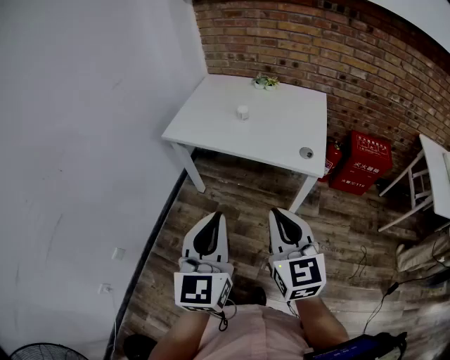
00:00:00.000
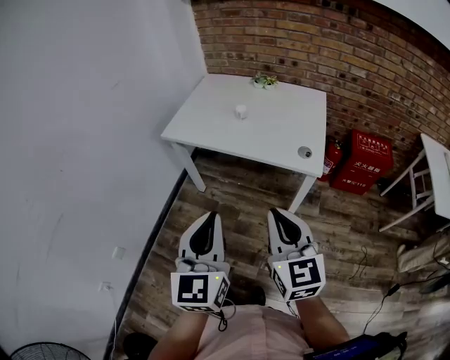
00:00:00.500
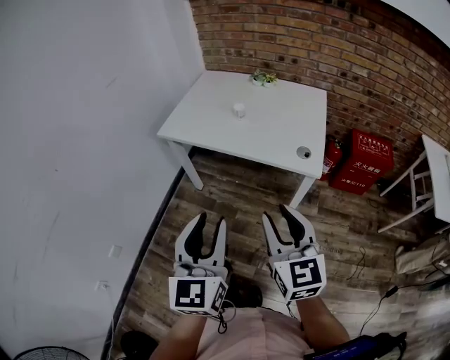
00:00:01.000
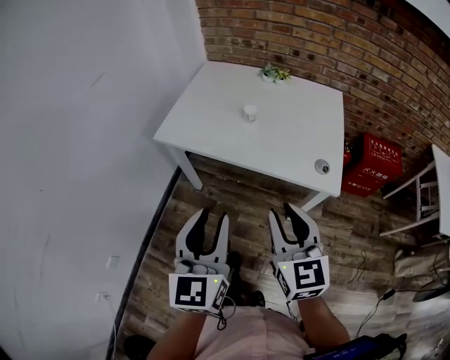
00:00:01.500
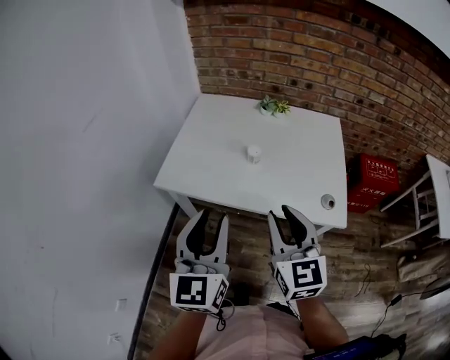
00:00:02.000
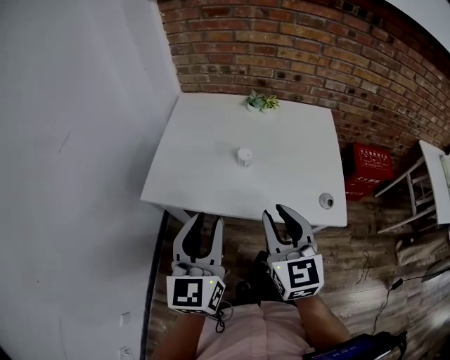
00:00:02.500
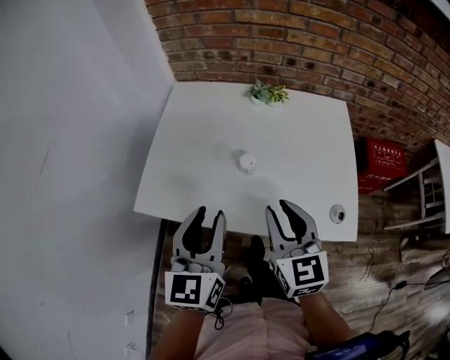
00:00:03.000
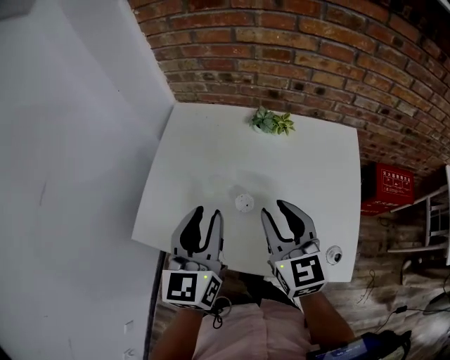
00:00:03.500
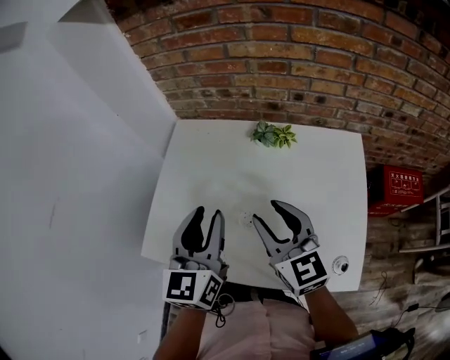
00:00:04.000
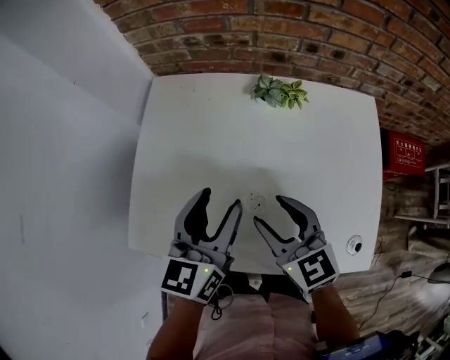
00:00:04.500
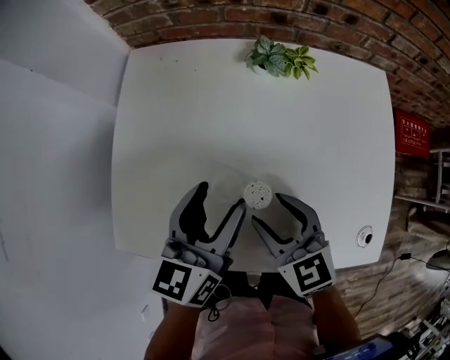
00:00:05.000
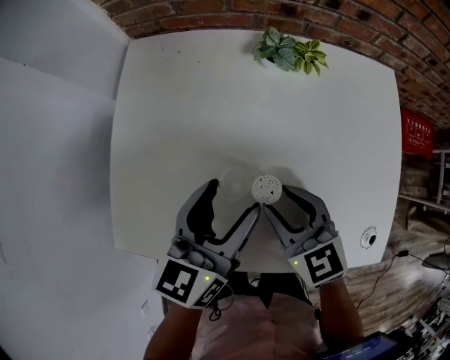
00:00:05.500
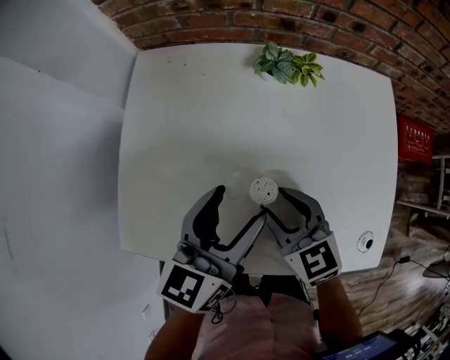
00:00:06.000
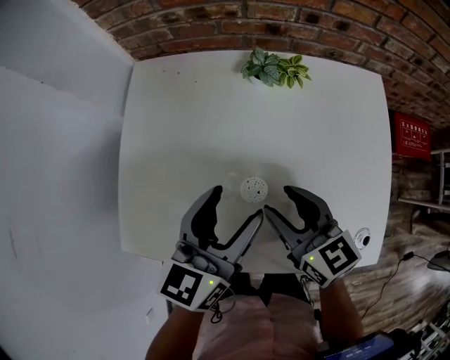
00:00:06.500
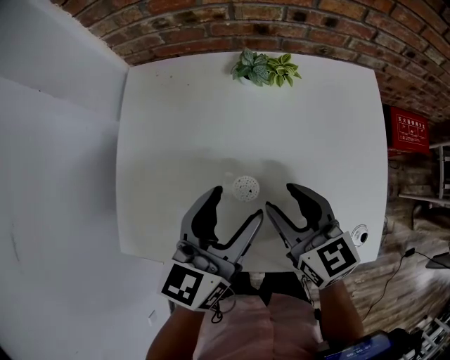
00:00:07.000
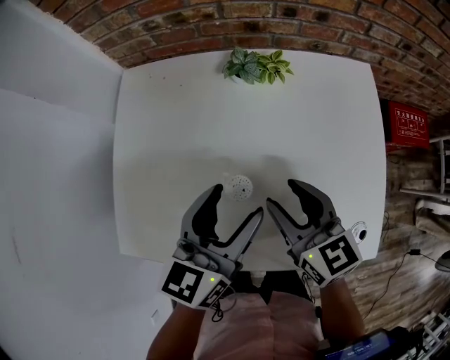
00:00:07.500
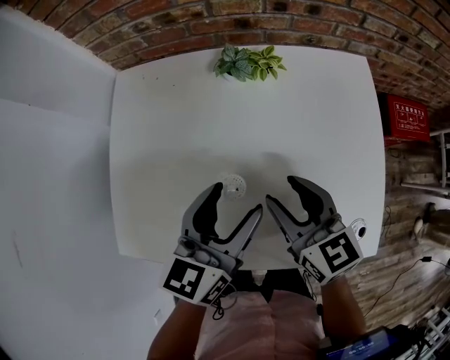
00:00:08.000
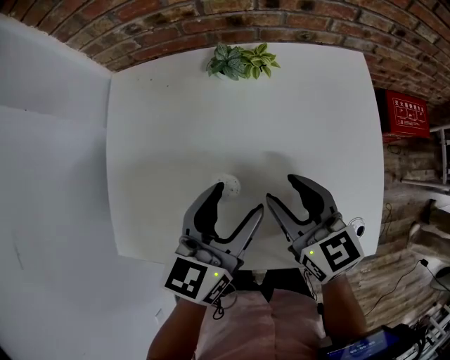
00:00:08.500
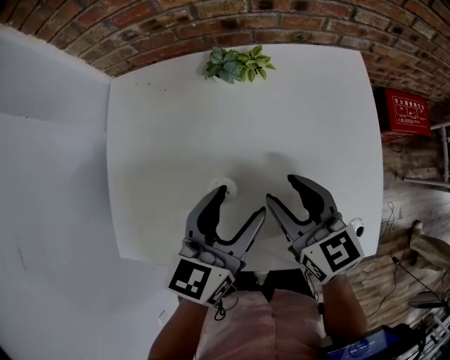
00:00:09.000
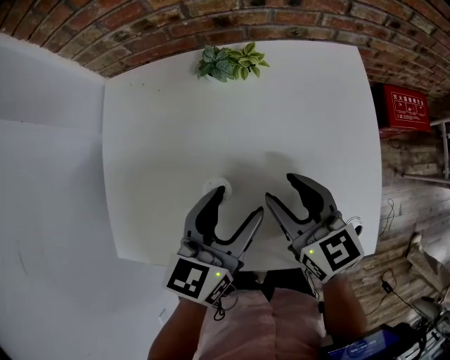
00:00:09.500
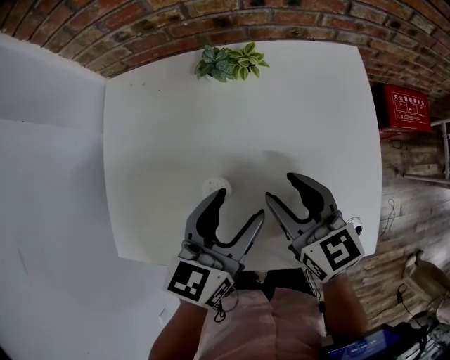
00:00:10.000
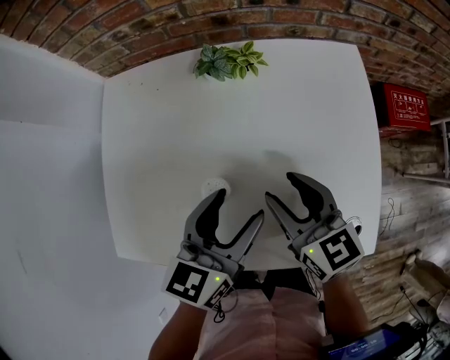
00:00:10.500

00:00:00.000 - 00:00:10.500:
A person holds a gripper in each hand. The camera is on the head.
00:00:00.000 - 00:00:02.000: The two grippers go some 25 cm forward. The left gripper opens. The right gripper opens its fingers.
00:00:02.000 - 00:00:04.000: The two grippers go some 30 cm forward.
00:00:04.000 - 00:00:06.500: Both grippers travel together downward, approximately 10 cm. The left gripper swivels some 30 degrees, and opens.
00:00:06.500 - 00:00:08.500: The grippers both shift to the right by some 5 cm.
00:00:08.500 - 00:00:10.500: There are only small adjustments of the grippers.

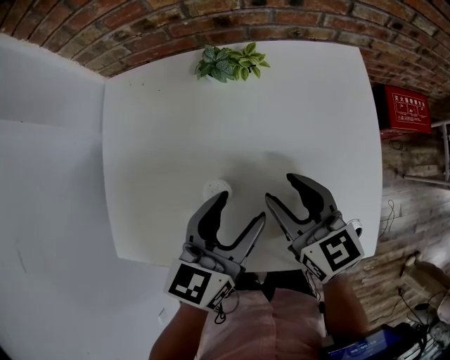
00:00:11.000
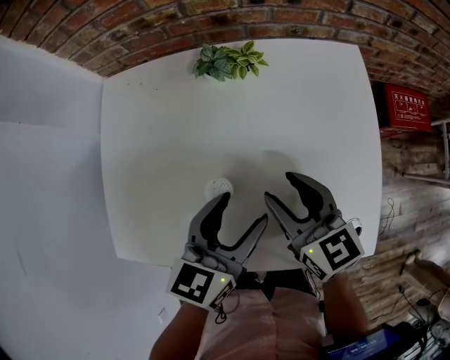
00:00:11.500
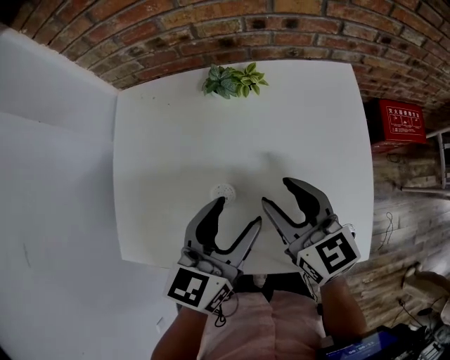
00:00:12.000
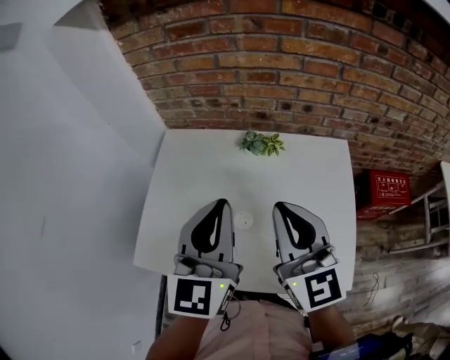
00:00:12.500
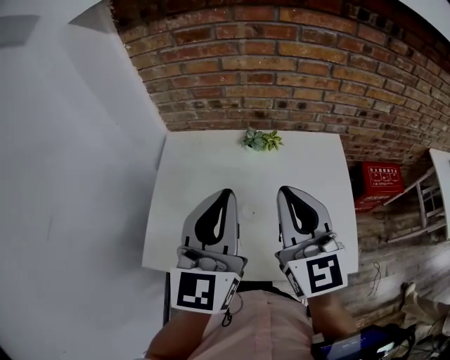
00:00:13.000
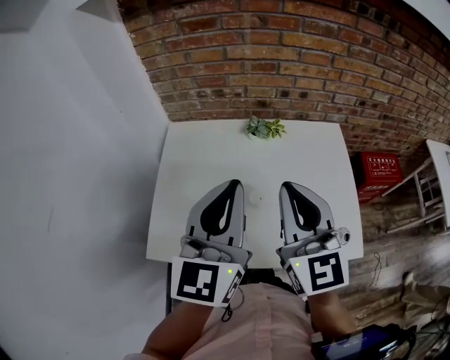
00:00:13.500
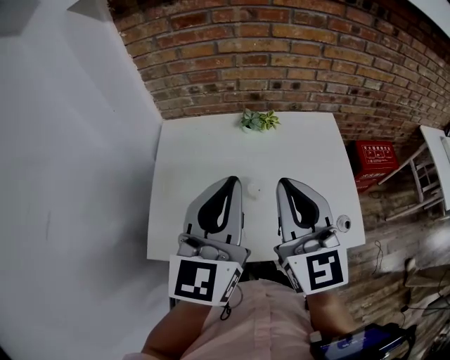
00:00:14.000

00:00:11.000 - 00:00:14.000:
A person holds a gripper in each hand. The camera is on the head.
00:00:11.000 - 00:00:12.500: The two grippers go approximately 25 cm upward. The right gripper rotates approximately 30 degrees, and closes up. Meanwhile the left gripper changes its angle by roughly 40 degrees, and closes its fingers.
00:00:12.500 - 00:00:14.000: The left gripper is displaced backward by approximately 5 cm, while the right gripper goes roughly 10 cm backward and to the left.

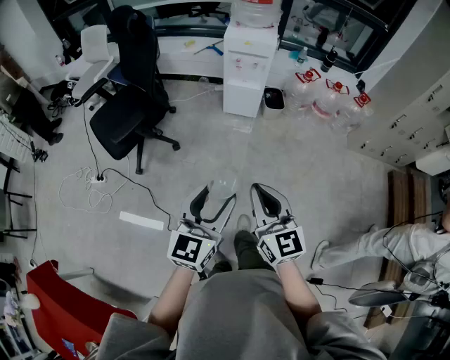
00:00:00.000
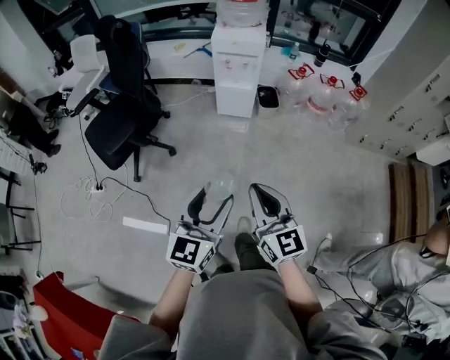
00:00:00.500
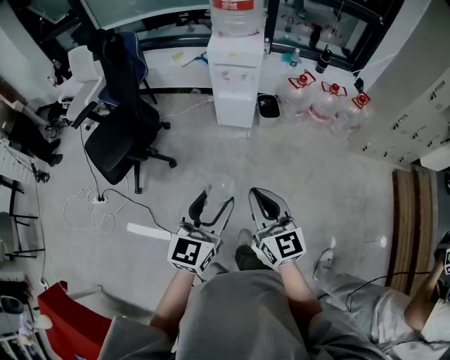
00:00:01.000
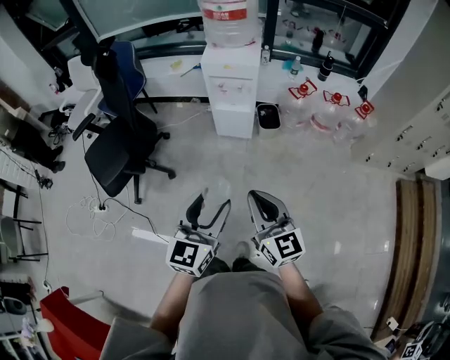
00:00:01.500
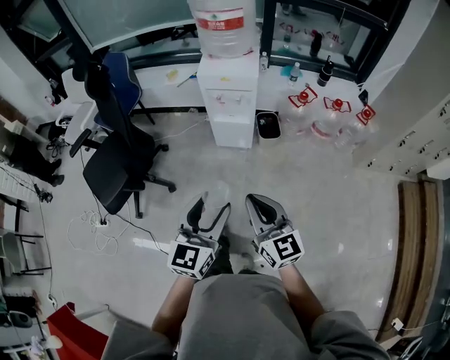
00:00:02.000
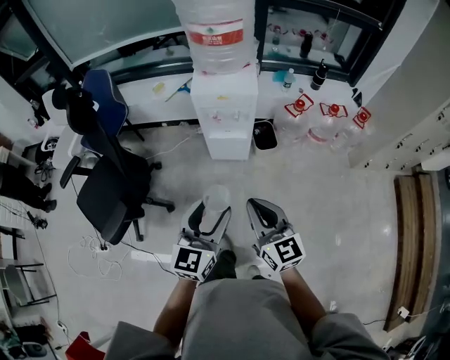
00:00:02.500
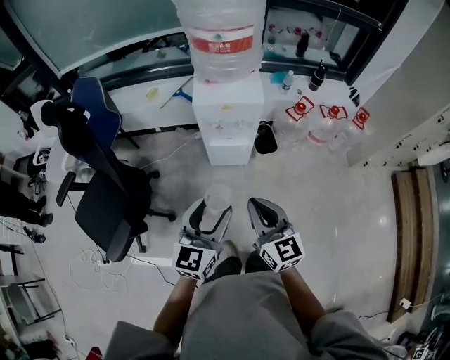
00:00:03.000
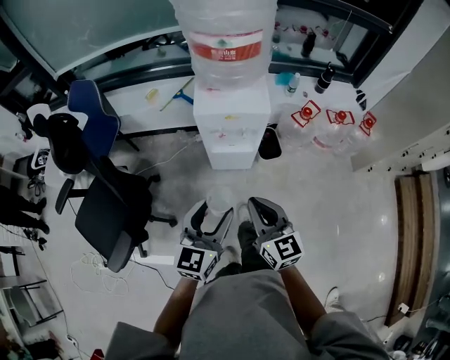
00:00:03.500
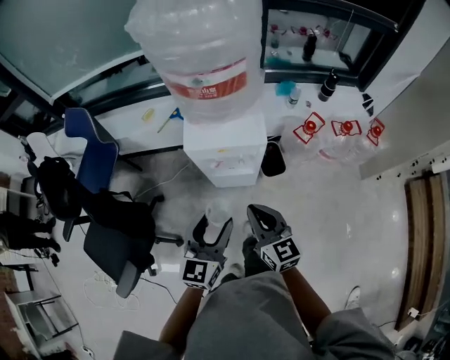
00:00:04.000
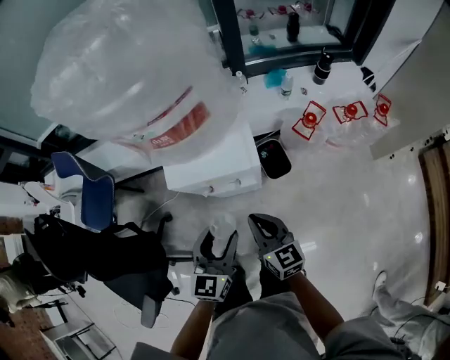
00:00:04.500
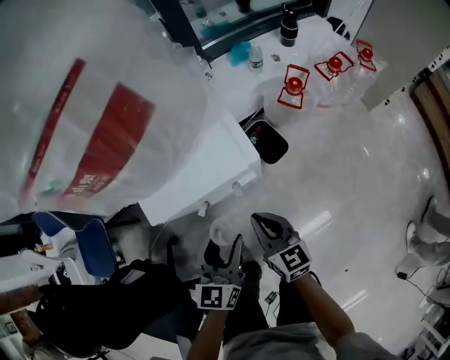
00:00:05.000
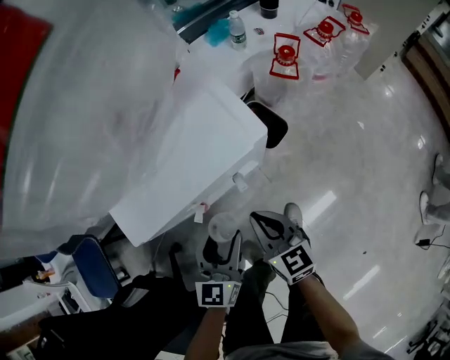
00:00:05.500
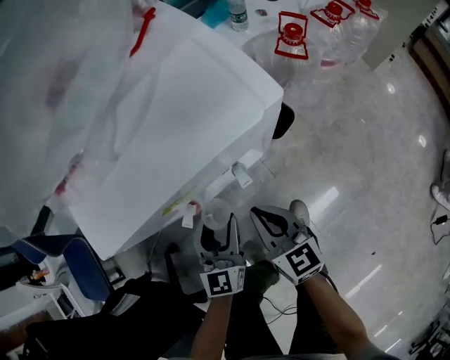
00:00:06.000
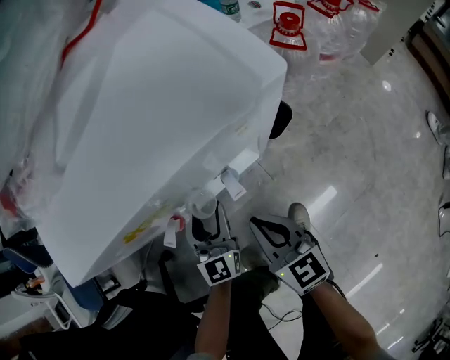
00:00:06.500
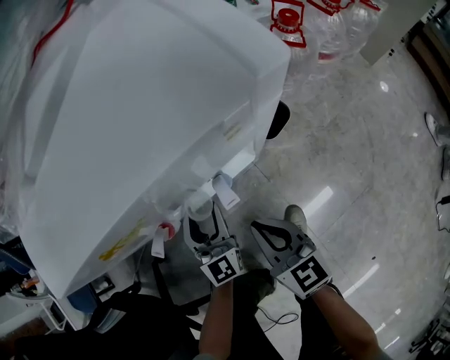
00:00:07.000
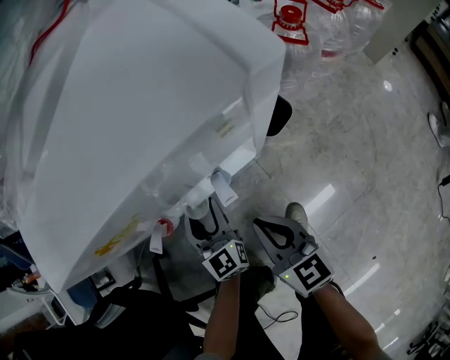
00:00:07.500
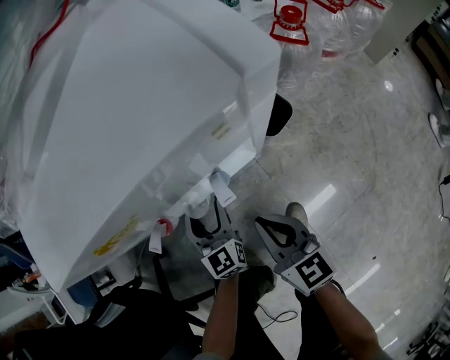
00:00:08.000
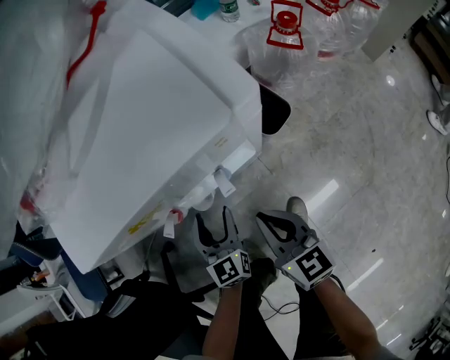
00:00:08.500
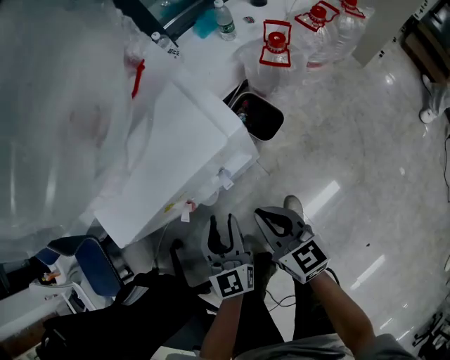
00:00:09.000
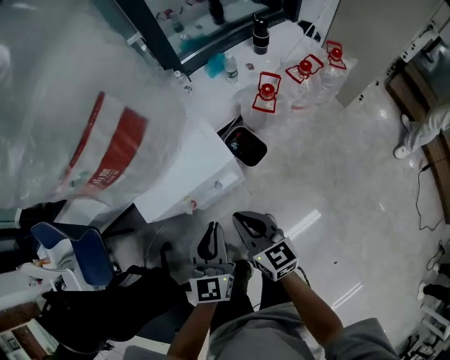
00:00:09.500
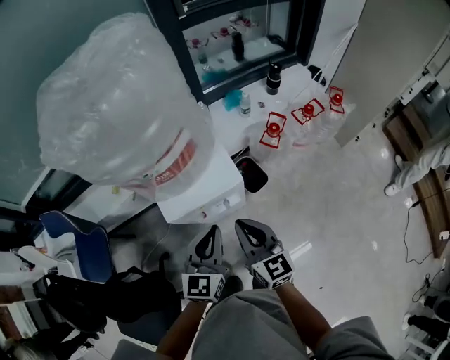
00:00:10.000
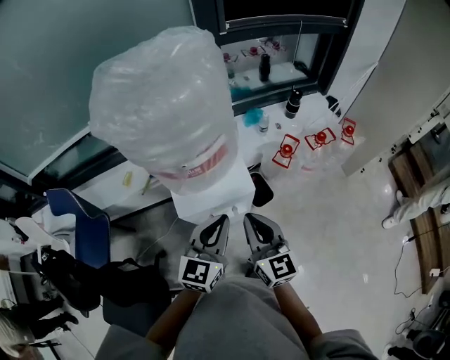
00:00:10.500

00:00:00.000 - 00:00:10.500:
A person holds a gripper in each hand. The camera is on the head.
00:00:00.000 - 00:00:02.000: Both grippers travel together forward, approximately 25 cm.
00:00:02.000 - 00:00:04.000: The grippers both shift forward by approximately 35 cm.
00:00:04.000 - 00:00:06.500: The right gripper shifts roughly 40 cm downward, and rotates roughly 20 degrees. The left gripper moves downward and forward, about 50 cm.
00:00:06.500 - 00:00:08.500: The grippers make only small movements.
00:00:08.500 - 00:00:10.500: Both grippers move upward, about 50 cm. The right gripper changes its angle by about 20 degrees. Meanwhile the left gripper swivels some 30 degrees, and closes its fingers.

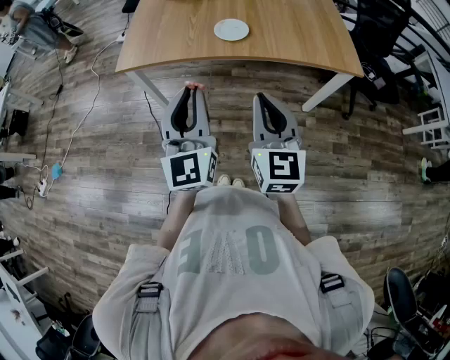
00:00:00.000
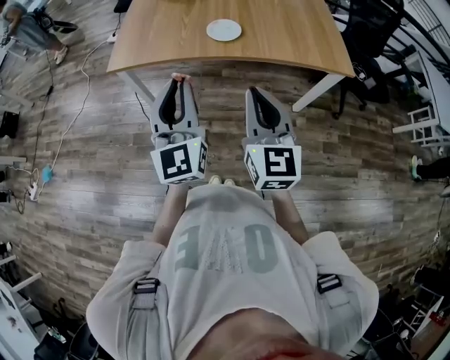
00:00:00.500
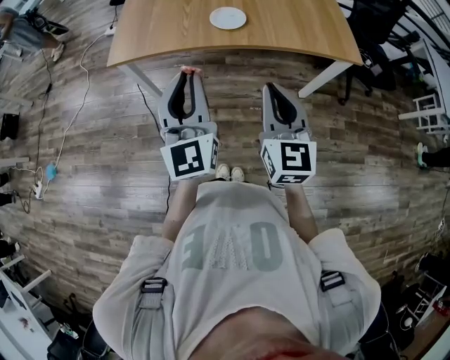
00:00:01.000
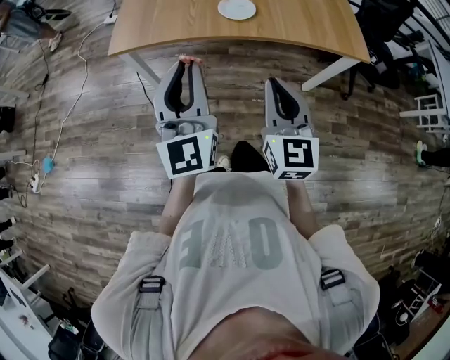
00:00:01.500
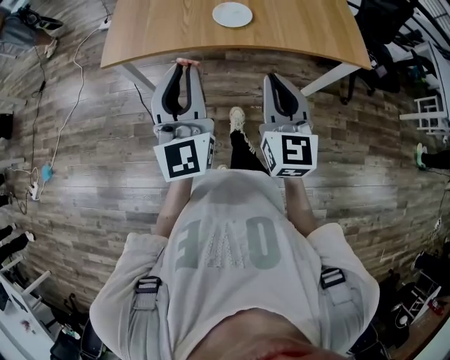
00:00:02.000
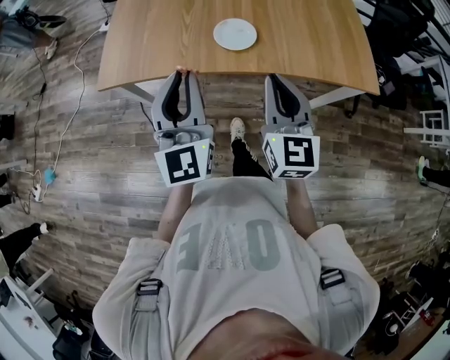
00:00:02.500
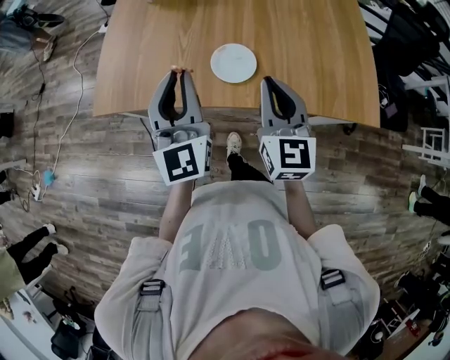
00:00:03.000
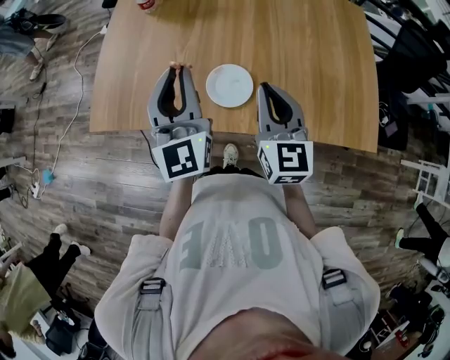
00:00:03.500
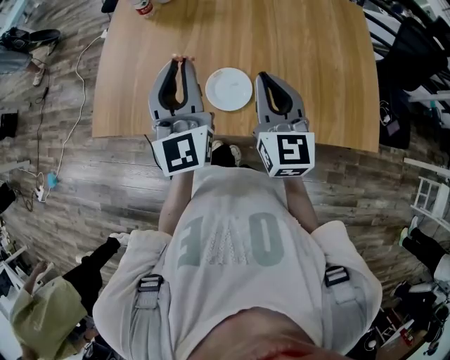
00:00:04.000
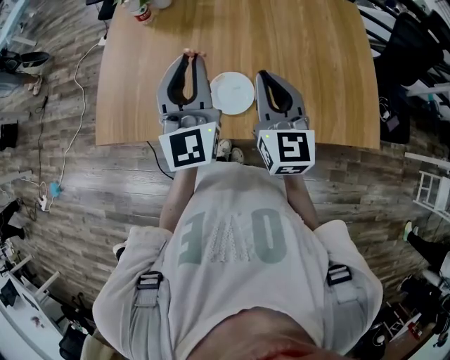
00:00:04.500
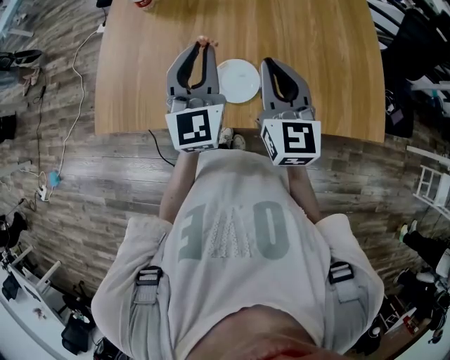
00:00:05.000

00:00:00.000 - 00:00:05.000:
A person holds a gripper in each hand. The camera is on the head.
00:00:00.000 - 00:00:02.500: The two grippers go about 20 cm forward.
00:00:02.500 - 00:00:05.000: Both grippers move forward, about 25 cm.
